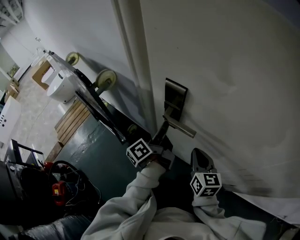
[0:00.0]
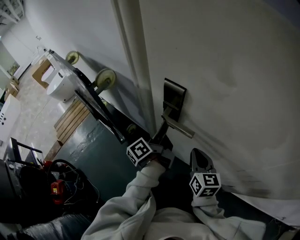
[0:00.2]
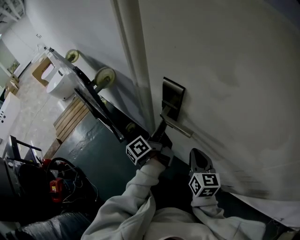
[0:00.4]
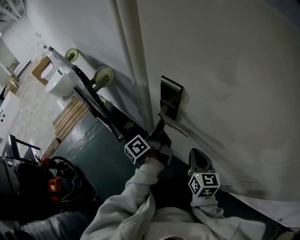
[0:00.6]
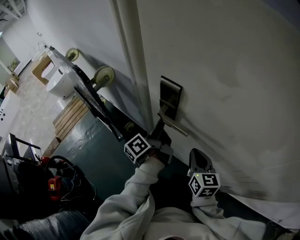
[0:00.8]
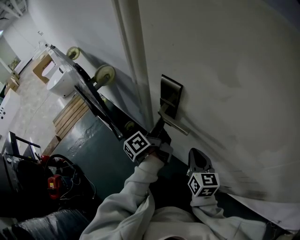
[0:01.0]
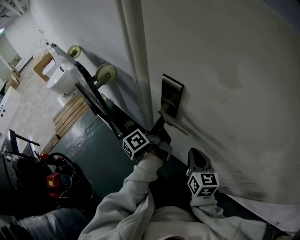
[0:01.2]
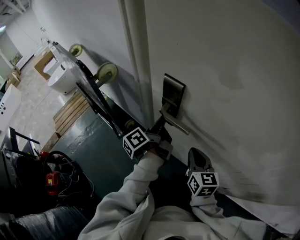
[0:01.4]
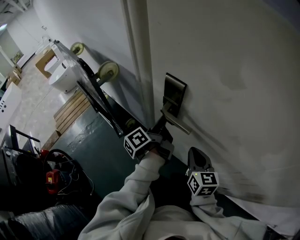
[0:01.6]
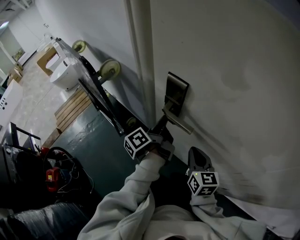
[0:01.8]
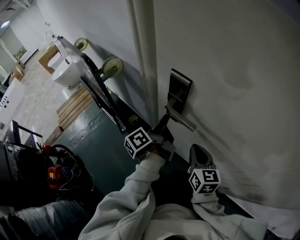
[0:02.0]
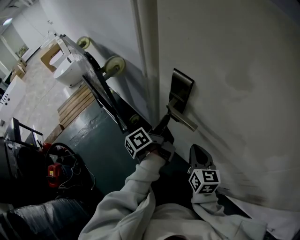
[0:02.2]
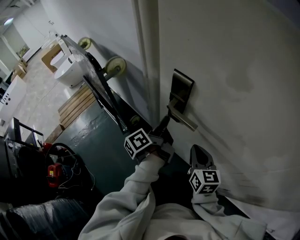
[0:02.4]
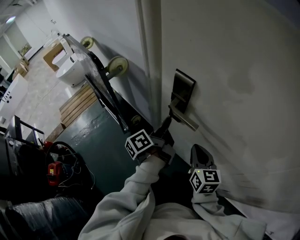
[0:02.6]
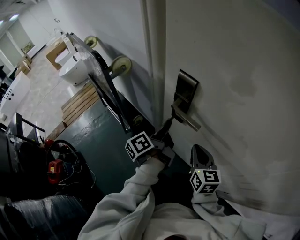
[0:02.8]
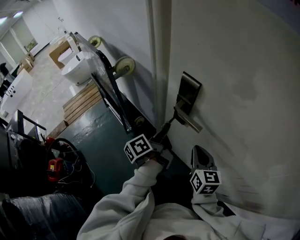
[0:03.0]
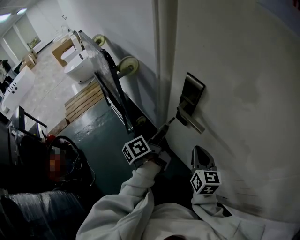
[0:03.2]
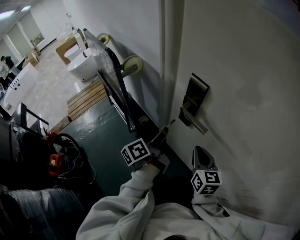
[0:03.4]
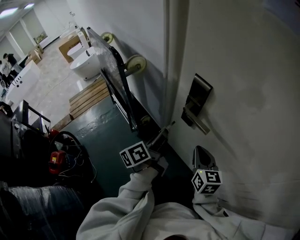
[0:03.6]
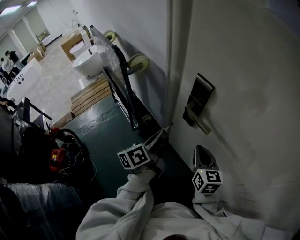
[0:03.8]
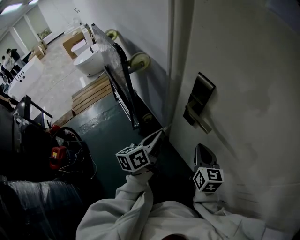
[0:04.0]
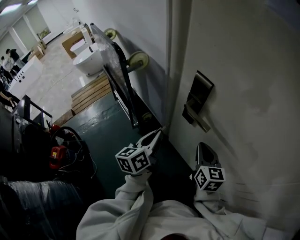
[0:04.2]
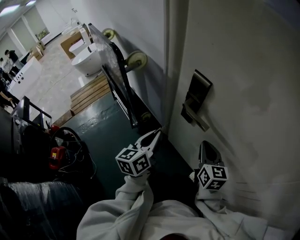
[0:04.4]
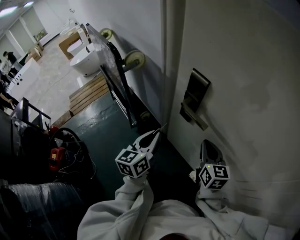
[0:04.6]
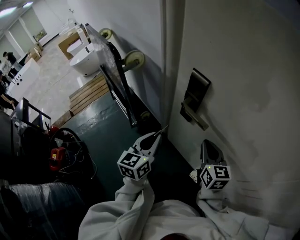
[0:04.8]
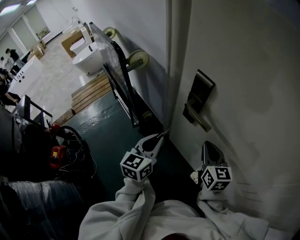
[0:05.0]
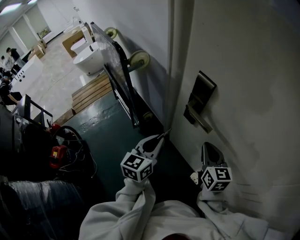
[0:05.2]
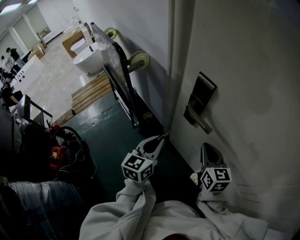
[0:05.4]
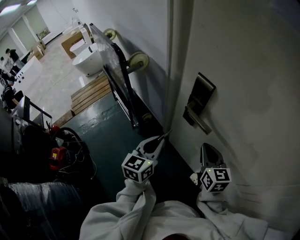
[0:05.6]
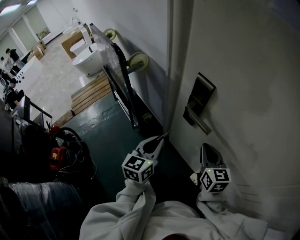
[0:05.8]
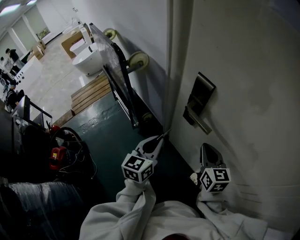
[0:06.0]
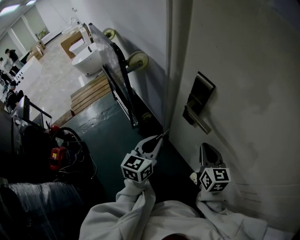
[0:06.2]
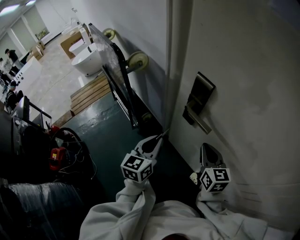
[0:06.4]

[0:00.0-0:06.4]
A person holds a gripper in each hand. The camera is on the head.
0.0 to 1.6 s: The left gripper closes.
1.6 to 3.2 s: The left gripper is displaced backward by some 5 cm.
3.2 to 4.8 s: The left gripper moves backward, approximately 5 cm, and twists approximately 60 degrees clockwise, seen from behind.
4.8 to 6.4 s: The grippers move only a little.

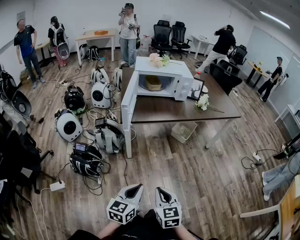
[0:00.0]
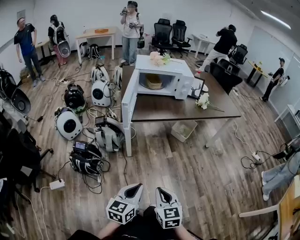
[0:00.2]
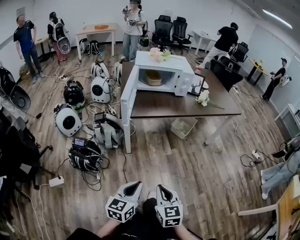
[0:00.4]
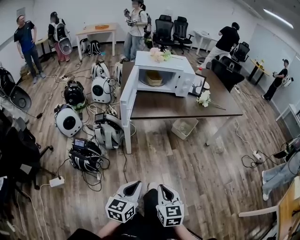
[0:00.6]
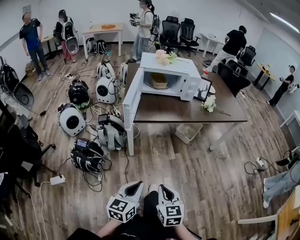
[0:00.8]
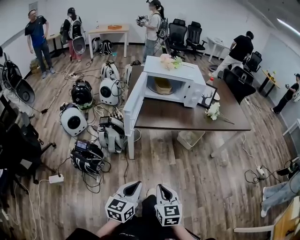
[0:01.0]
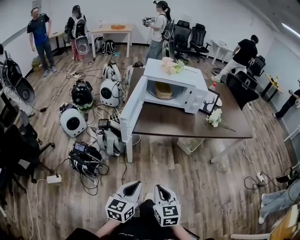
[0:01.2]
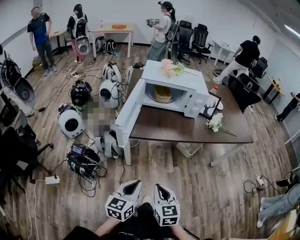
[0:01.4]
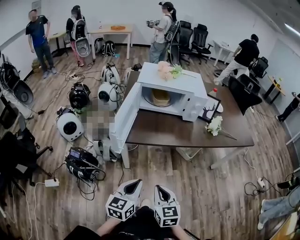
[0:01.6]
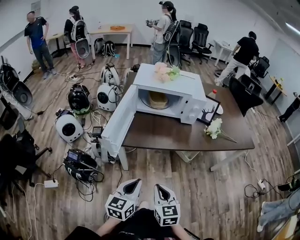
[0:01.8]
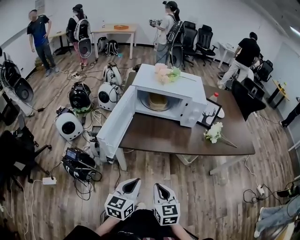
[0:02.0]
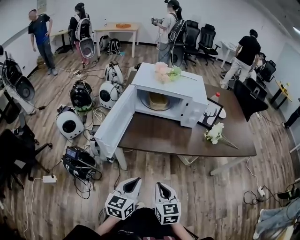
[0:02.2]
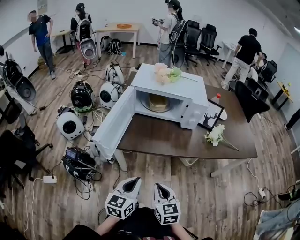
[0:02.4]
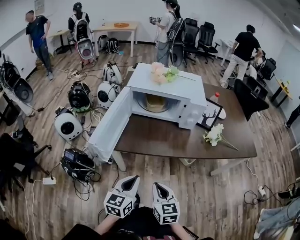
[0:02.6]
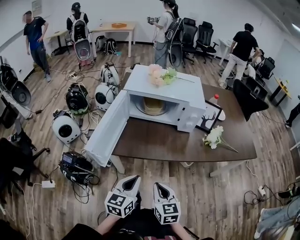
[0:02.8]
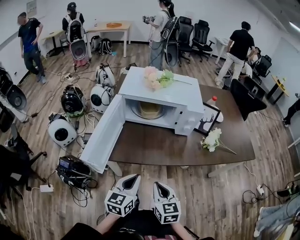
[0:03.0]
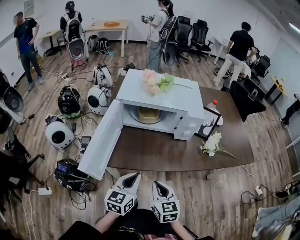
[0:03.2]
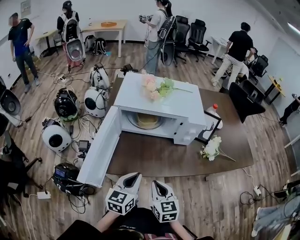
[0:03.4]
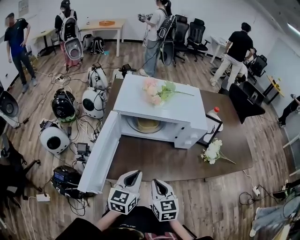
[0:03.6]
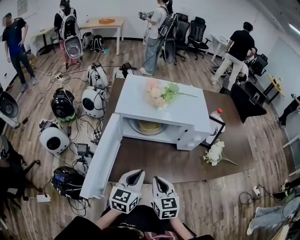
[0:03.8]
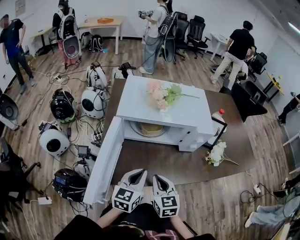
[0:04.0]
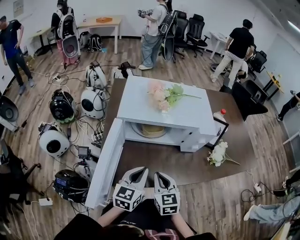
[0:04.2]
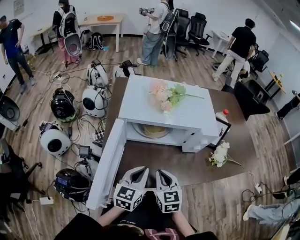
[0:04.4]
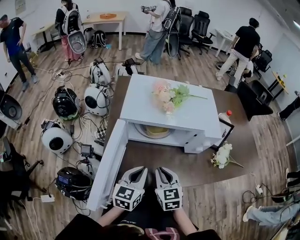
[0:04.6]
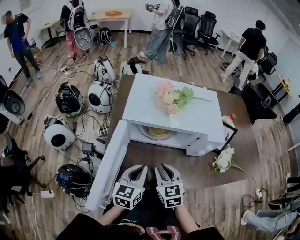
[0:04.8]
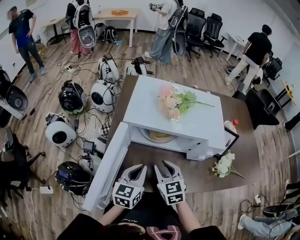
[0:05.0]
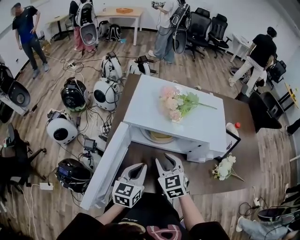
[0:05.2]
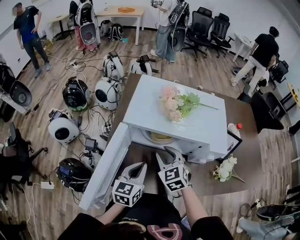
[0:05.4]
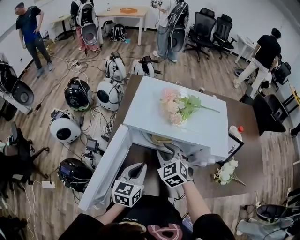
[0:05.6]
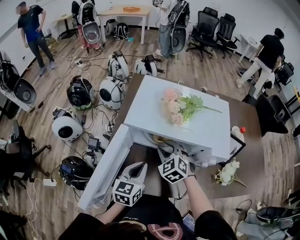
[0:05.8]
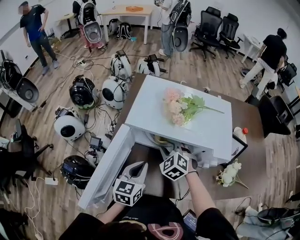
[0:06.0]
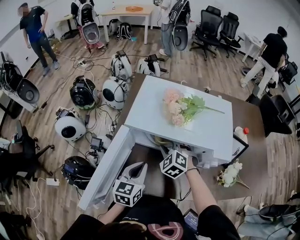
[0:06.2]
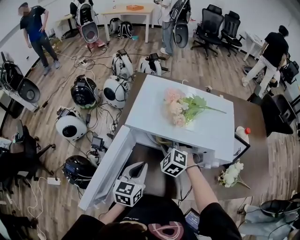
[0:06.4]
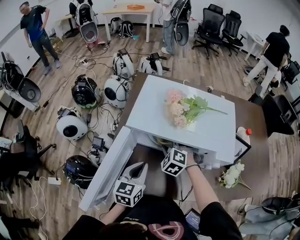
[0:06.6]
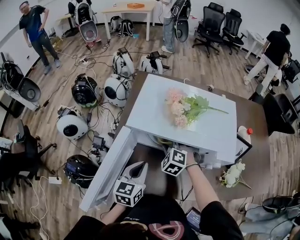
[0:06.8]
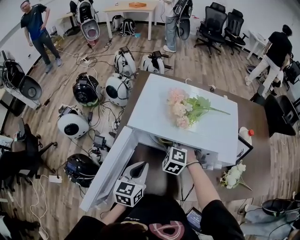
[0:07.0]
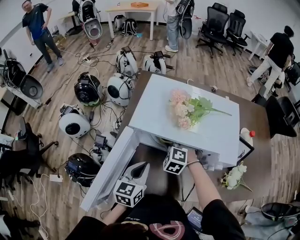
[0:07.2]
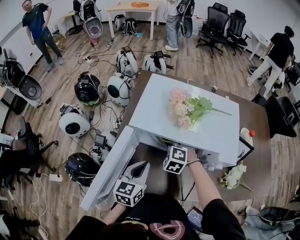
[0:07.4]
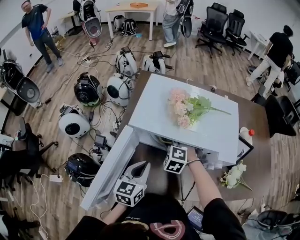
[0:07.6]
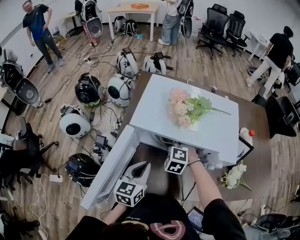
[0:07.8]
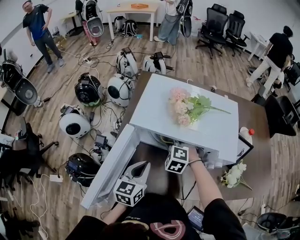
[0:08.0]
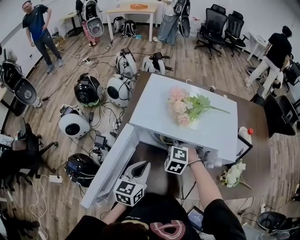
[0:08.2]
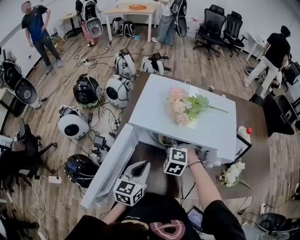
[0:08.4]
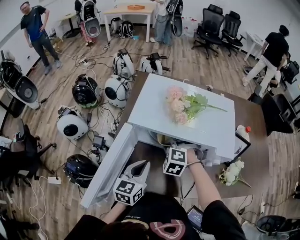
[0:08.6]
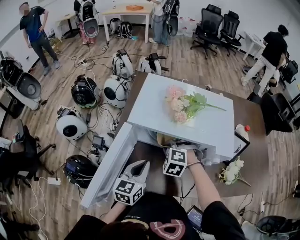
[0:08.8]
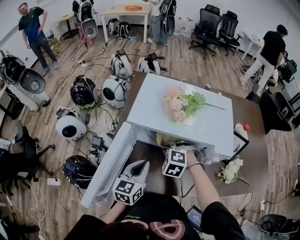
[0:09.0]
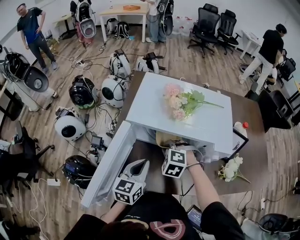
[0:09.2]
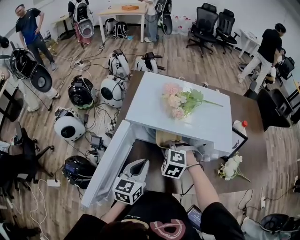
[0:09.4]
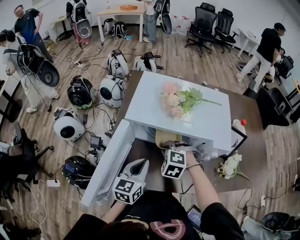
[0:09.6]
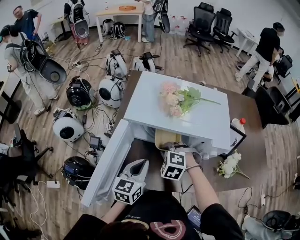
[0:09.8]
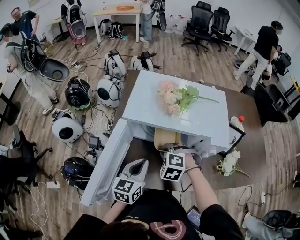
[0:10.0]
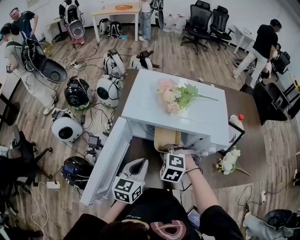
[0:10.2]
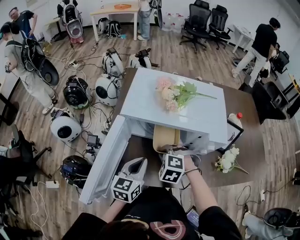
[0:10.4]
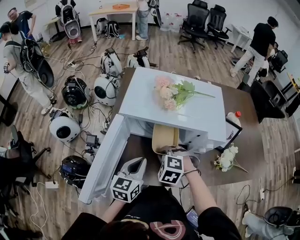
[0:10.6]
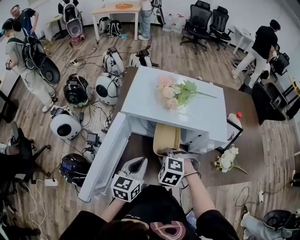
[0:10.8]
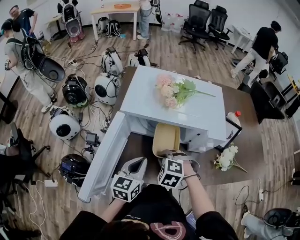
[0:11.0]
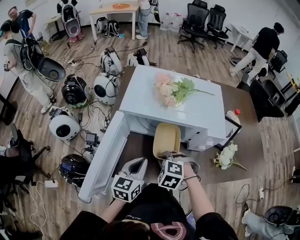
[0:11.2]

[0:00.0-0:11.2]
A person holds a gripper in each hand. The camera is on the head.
0.0 to 1.6 s: Both grippers move forward, some 25 cm.
1.6 to 3.2 s: Both grippers travel together forward, about 20 cm.
3.2 to 4.8 s: The two grippers go approximately 20 cm forward. The right gripper opens.
4.8 to 6.4 s: The right gripper is displaced forward by about 15 cm, and rotates around the line of its fingers by roughly 50 degrees, counterclockwise from behind.
6.4 to 8.0 s: The right gripper closes.
8.0 to 9.6 s: The right gripper shifts approximately 5 cm backward.
9.6 to 11.2 s: The right gripper heads backward, covering approximately 10 cm.

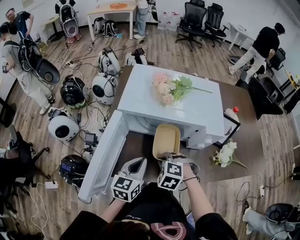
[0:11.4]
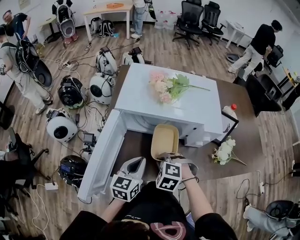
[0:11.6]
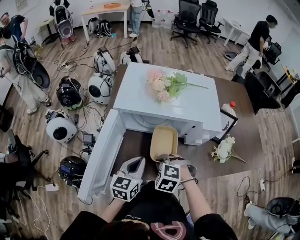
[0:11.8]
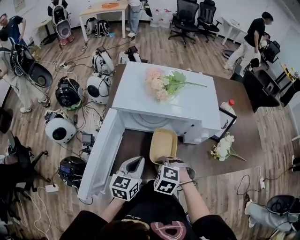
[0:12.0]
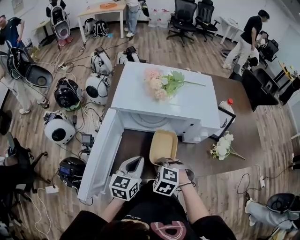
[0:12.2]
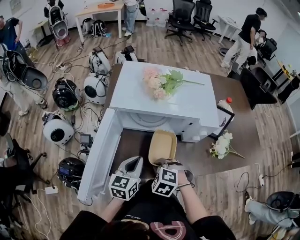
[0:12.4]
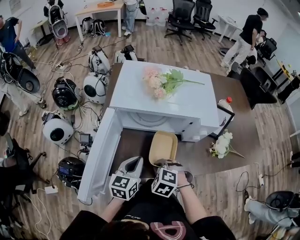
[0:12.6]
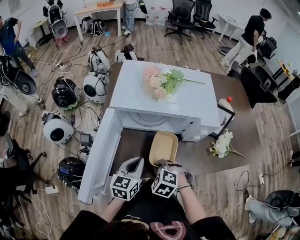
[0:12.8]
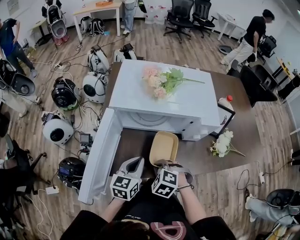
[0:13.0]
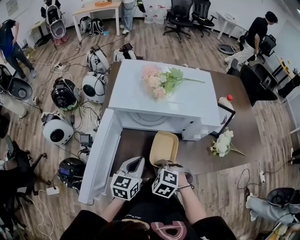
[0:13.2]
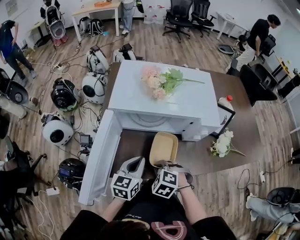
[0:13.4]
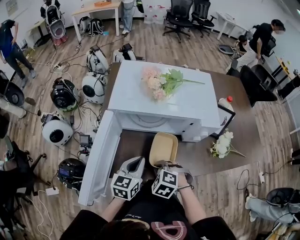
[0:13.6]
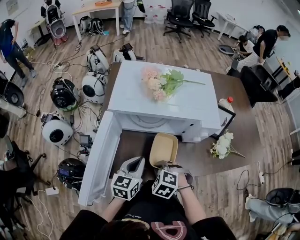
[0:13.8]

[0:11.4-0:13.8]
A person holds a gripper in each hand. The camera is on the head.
11.4 to 12.6 s: The right gripper changes place by about 5 cm.
12.6 to 13.8 s: The grippers stay close to where they were, moving slightly.

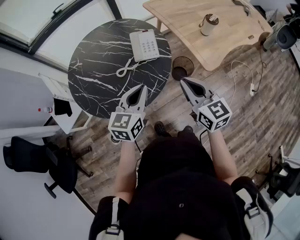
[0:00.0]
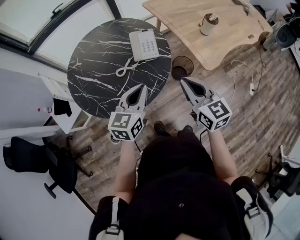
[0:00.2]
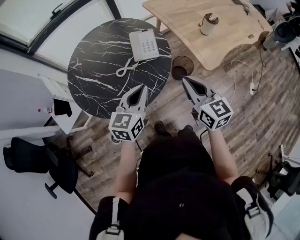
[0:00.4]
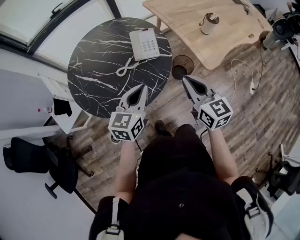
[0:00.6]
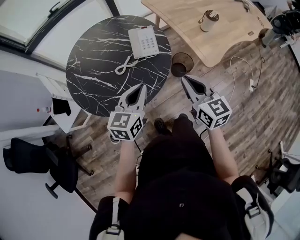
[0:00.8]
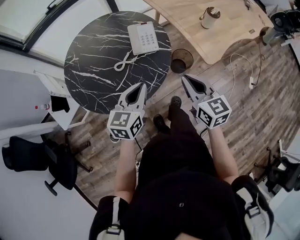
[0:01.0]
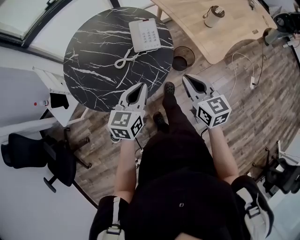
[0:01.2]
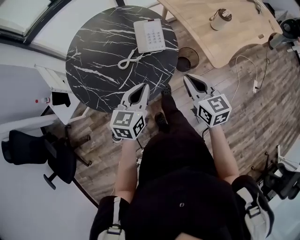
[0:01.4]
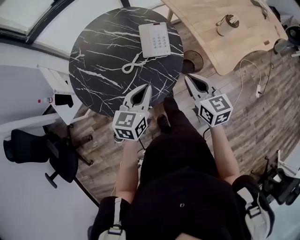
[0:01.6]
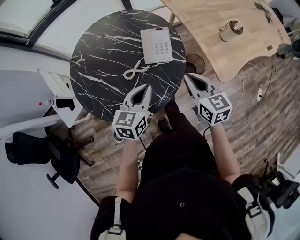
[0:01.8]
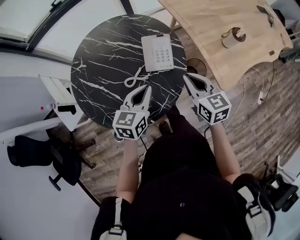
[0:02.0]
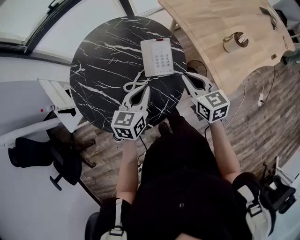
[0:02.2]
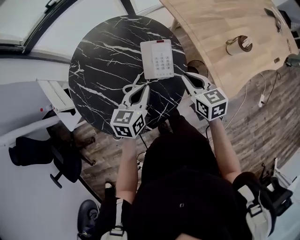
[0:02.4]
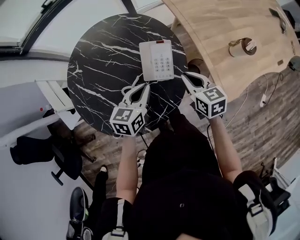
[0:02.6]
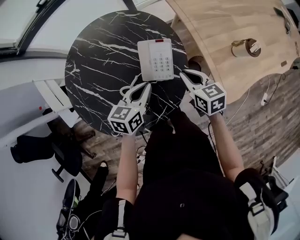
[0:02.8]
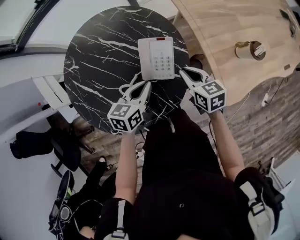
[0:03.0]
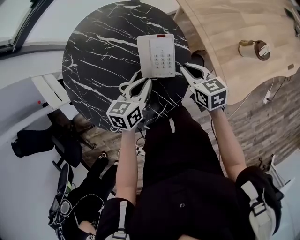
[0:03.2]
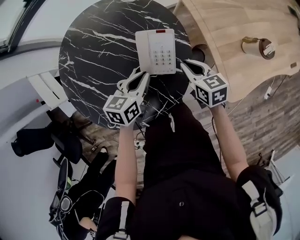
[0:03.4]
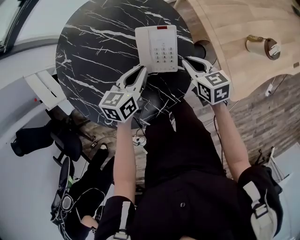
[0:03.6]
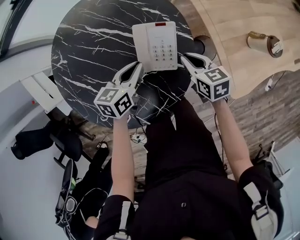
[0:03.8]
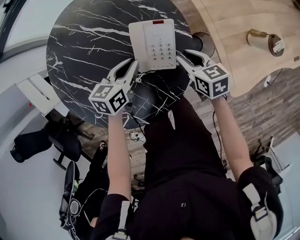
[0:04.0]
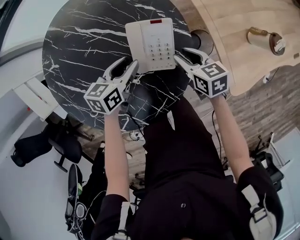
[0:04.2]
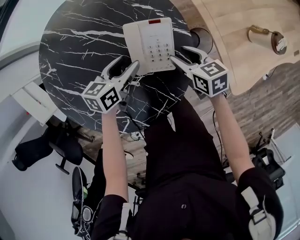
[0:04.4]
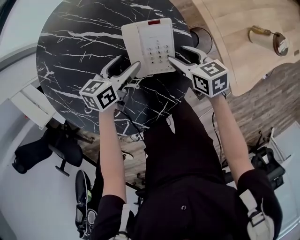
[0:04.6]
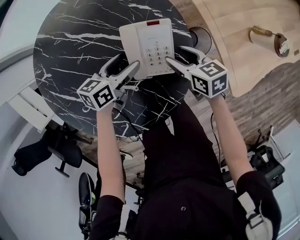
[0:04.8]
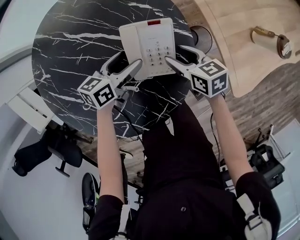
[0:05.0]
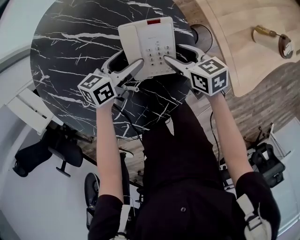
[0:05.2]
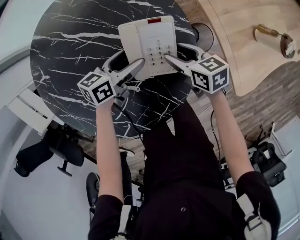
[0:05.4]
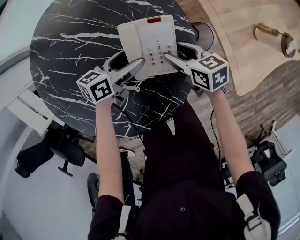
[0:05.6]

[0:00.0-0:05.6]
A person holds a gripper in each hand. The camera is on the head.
0.0 to 1.4 s: The left gripper changes place by some 5 cm. The right gripper heads downward, covering some 5 cm.
1.4 to 2.8 s: The left gripper goes some 20 cm forward. Meanwhile the right gripper heads forward and downward, covering roughly 25 cm.
2.8 to 4.2 s: The left gripper shifts some 15 cm downward and forward, and opens; the right gripper shifts about 10 cm downward, and opens its fingers.
4.2 to 5.6 s: The right gripper changes place by some 5 cm, and opens its fingers; the left gripper moves downward, some 5 cm, turns by some 20 degrees, and opens up.
